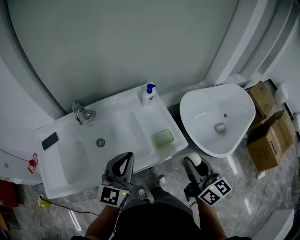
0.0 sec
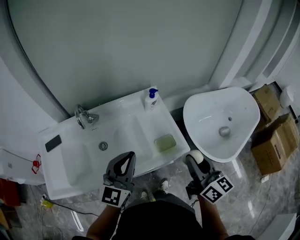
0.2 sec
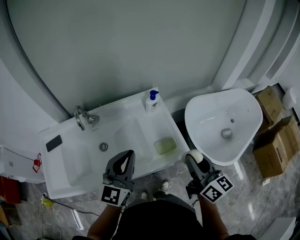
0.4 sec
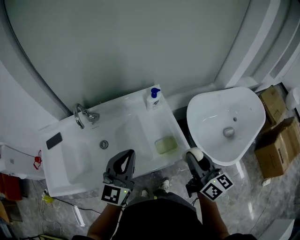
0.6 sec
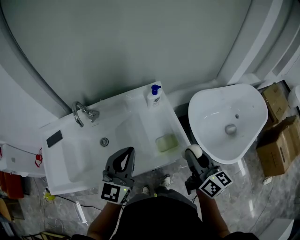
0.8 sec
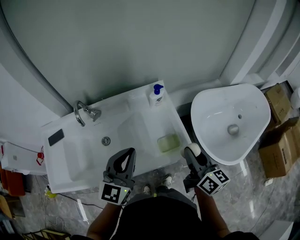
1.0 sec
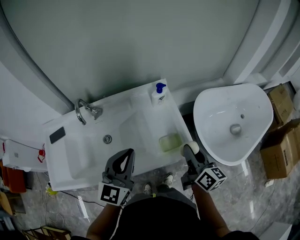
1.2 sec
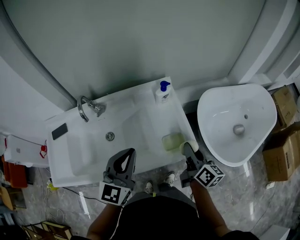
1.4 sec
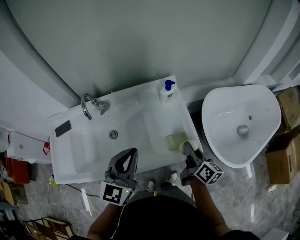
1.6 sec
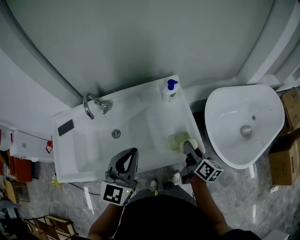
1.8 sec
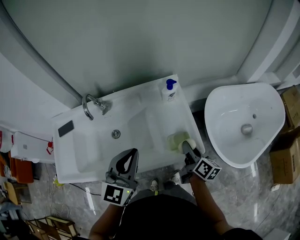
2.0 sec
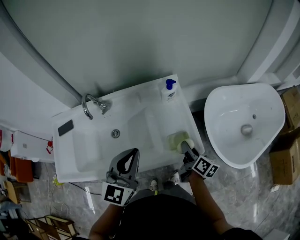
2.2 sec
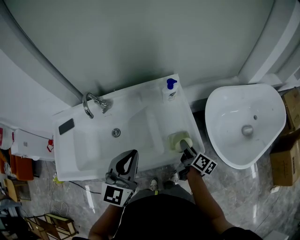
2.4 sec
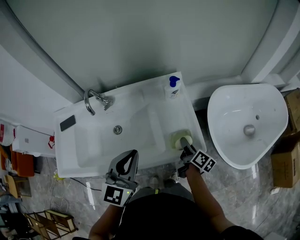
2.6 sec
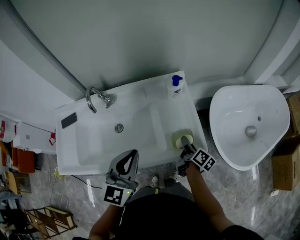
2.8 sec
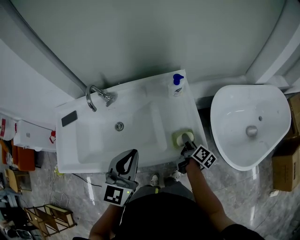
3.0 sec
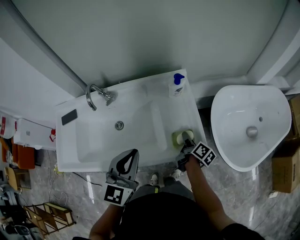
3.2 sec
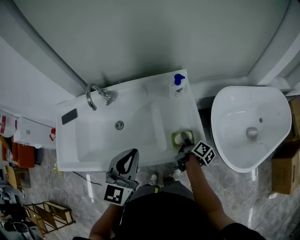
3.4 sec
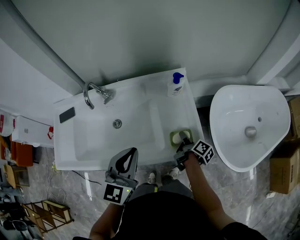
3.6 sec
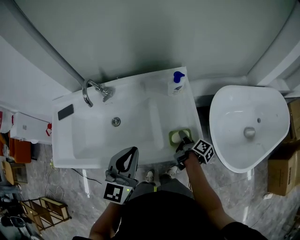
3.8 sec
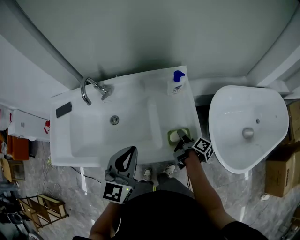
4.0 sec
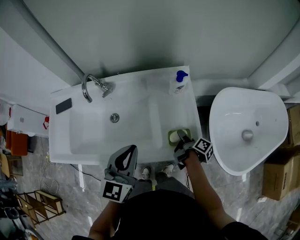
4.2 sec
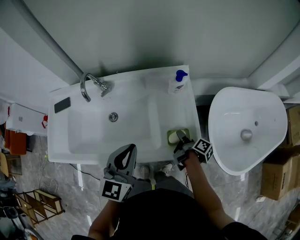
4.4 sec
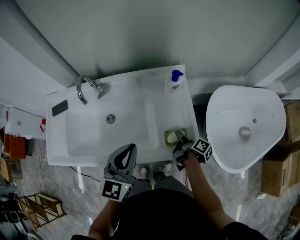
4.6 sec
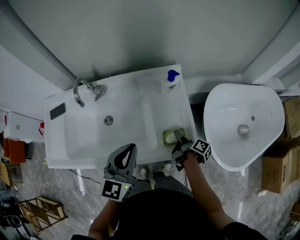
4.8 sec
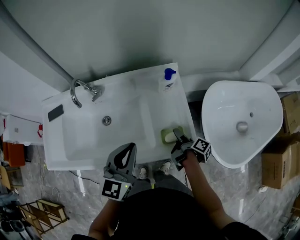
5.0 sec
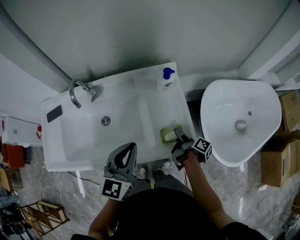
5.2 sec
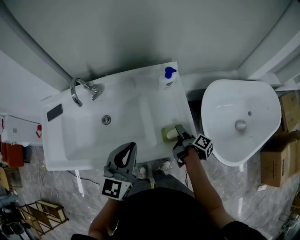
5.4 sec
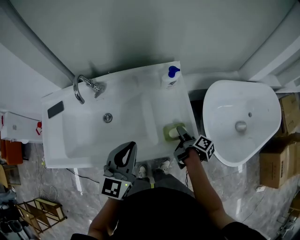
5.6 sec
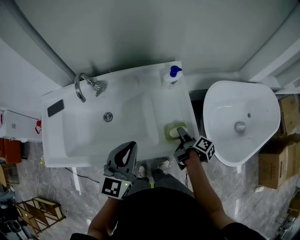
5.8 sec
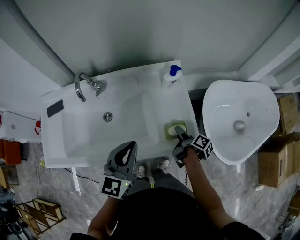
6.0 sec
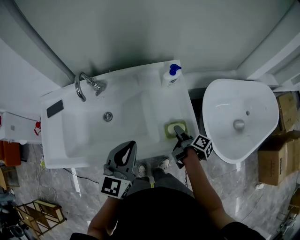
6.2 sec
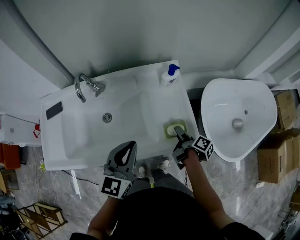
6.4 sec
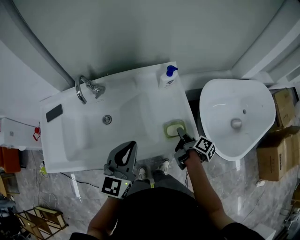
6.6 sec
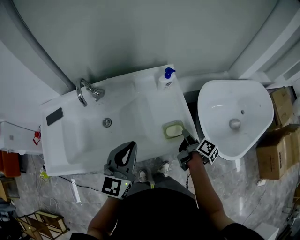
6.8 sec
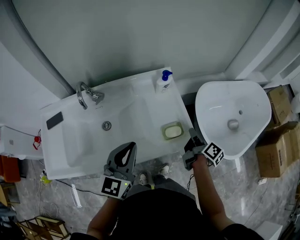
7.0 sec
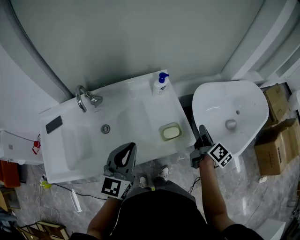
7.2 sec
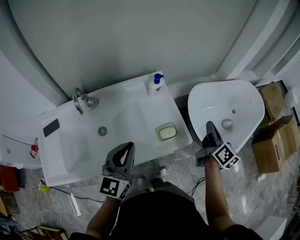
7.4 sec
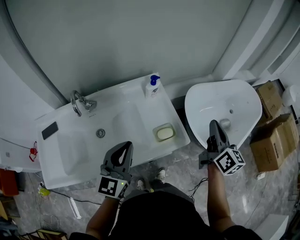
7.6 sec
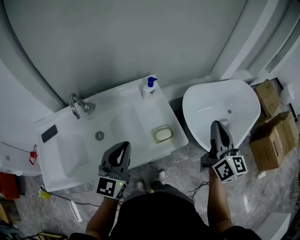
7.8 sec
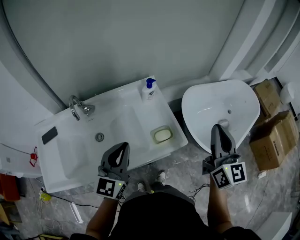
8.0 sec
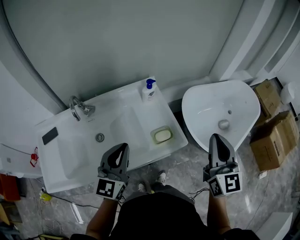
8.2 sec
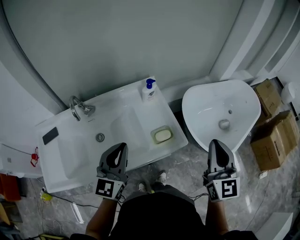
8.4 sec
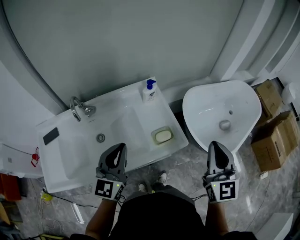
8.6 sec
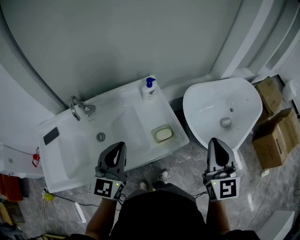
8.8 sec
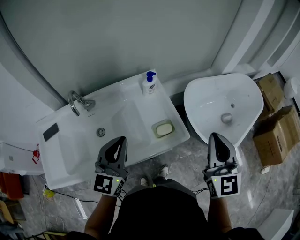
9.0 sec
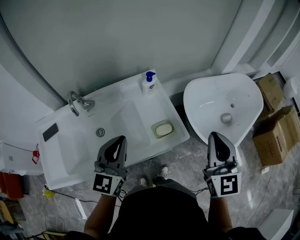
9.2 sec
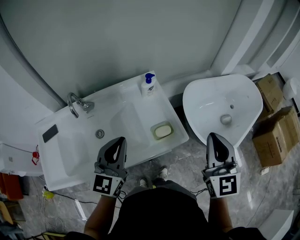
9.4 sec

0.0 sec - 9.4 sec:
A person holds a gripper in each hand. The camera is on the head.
0.0 sec - 1.6 sec: The right gripper moves downward and forward, roughly 20 cm, and swivels about 30 degrees, while the left gripper goes some 5 cm forward.
1.6 sec - 3.2 sec: The right gripper goes roughly 15 cm downward, and turns by about 30 degrees.
3.2 sec - 4.8 sec: The right gripper swivels about 20 degrees.
4.8 sec - 6.2 sec: There are only small adjustments of the grippers.
6.2 sec - 7.8 sec: The right gripper goes about 35 cm upward, rotates around the line of its fingers by some 70 degrees, counterclockwise from behind, and closes; the left gripper moves upward, approximately 5 cm.
7.8 sec - 9.4 sec: The right gripper heads backward, covering approximately 5 cm, and rotates approximately 30 degrees.

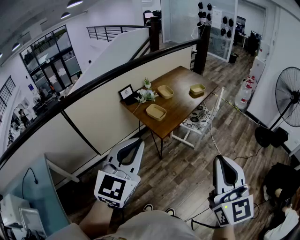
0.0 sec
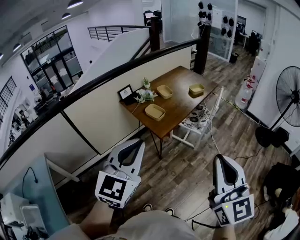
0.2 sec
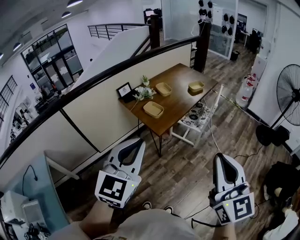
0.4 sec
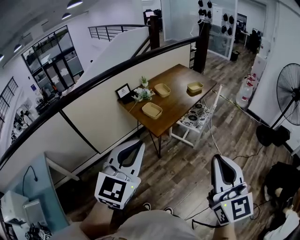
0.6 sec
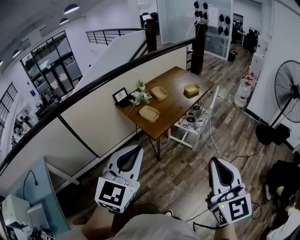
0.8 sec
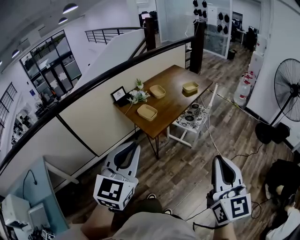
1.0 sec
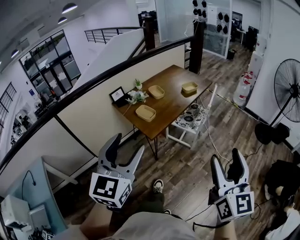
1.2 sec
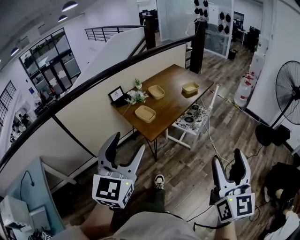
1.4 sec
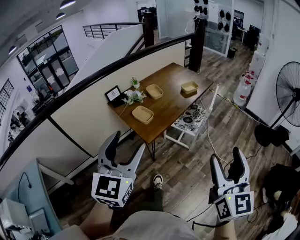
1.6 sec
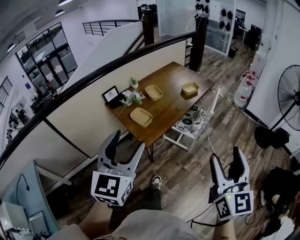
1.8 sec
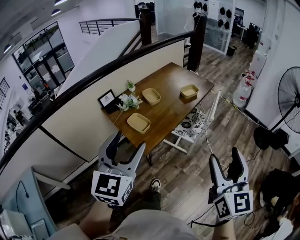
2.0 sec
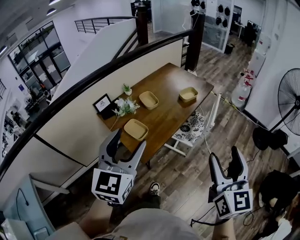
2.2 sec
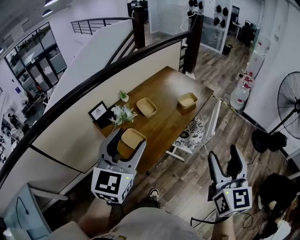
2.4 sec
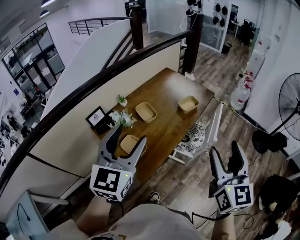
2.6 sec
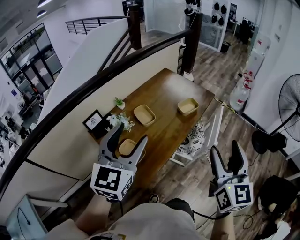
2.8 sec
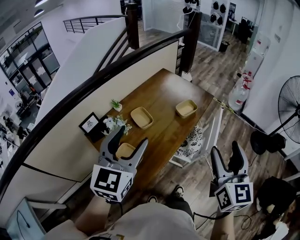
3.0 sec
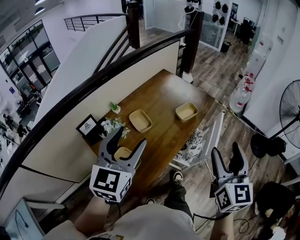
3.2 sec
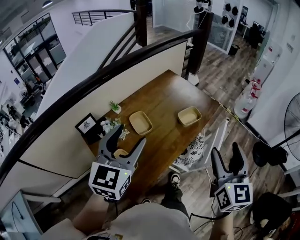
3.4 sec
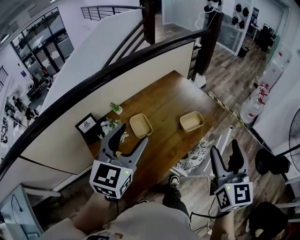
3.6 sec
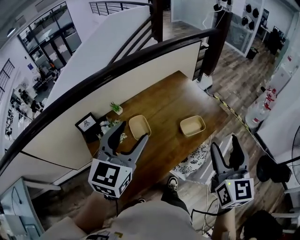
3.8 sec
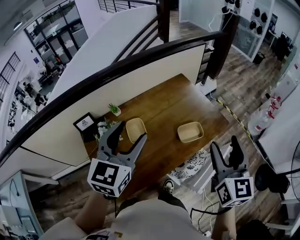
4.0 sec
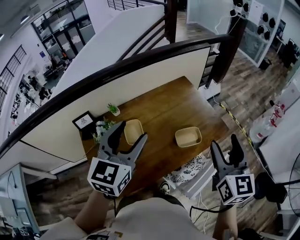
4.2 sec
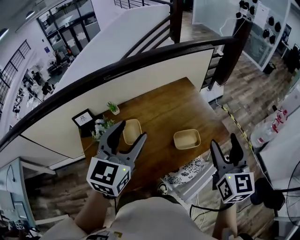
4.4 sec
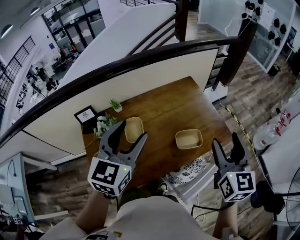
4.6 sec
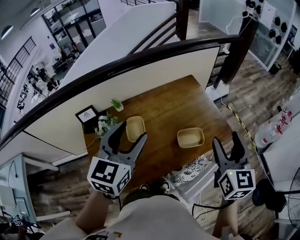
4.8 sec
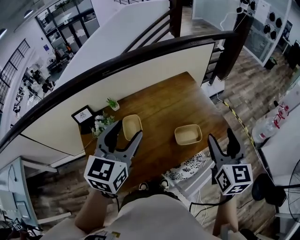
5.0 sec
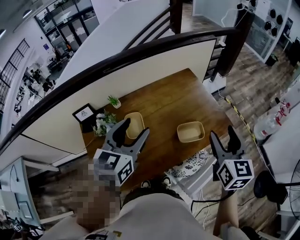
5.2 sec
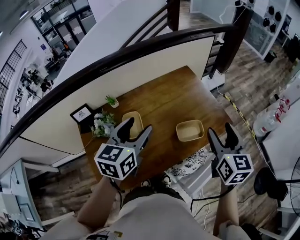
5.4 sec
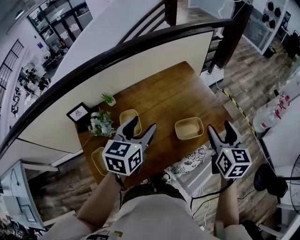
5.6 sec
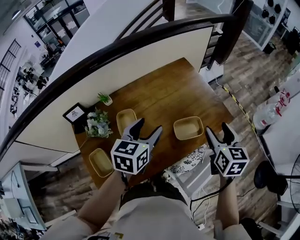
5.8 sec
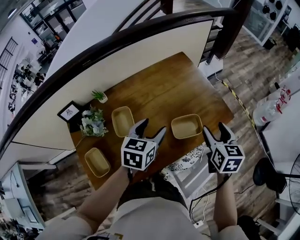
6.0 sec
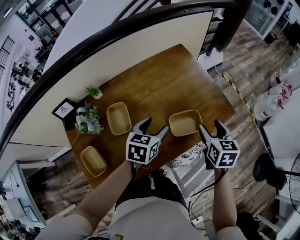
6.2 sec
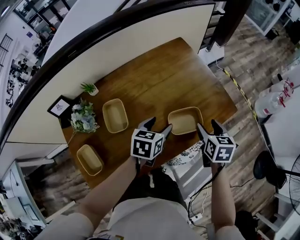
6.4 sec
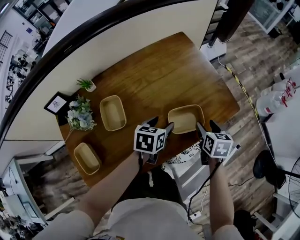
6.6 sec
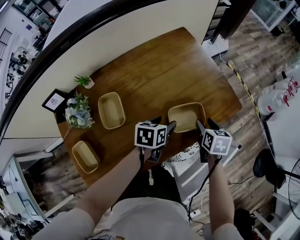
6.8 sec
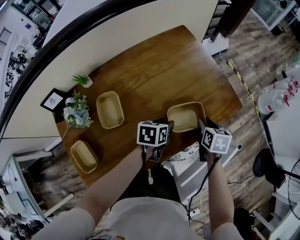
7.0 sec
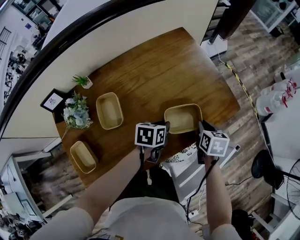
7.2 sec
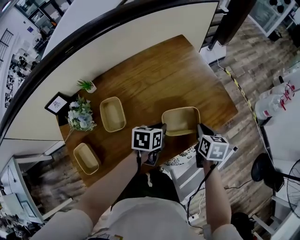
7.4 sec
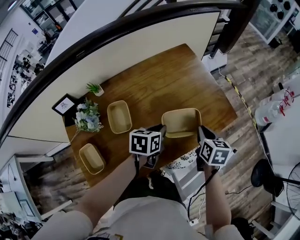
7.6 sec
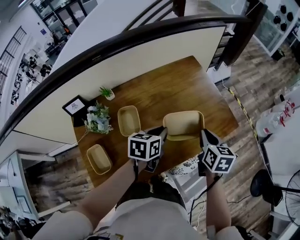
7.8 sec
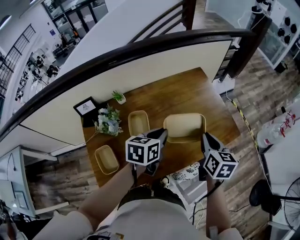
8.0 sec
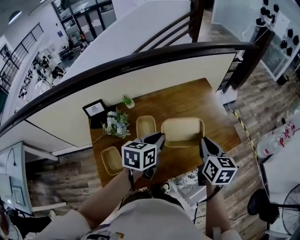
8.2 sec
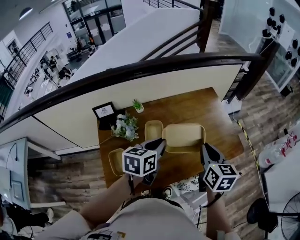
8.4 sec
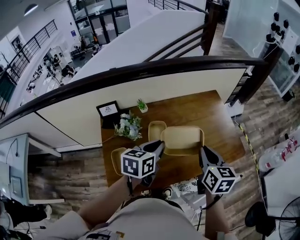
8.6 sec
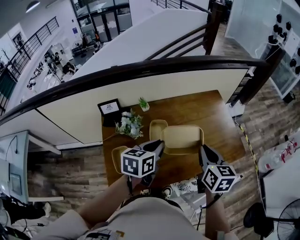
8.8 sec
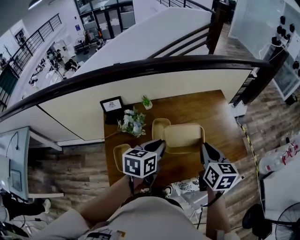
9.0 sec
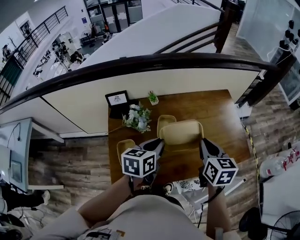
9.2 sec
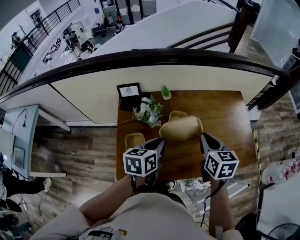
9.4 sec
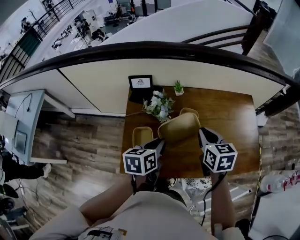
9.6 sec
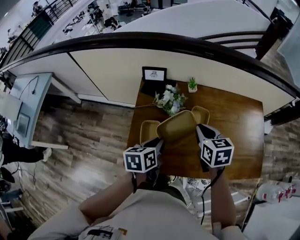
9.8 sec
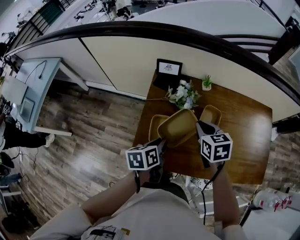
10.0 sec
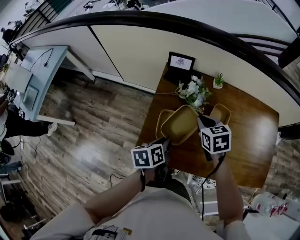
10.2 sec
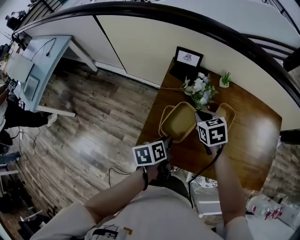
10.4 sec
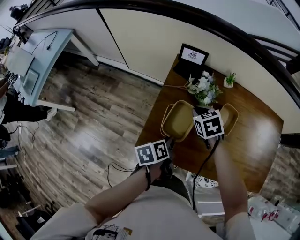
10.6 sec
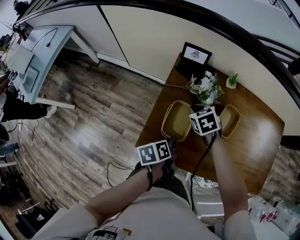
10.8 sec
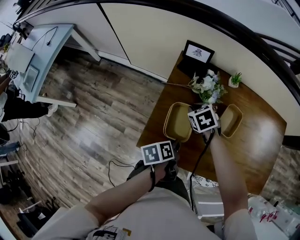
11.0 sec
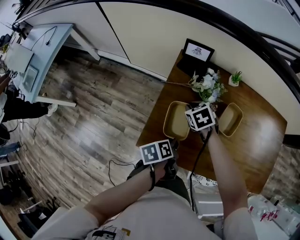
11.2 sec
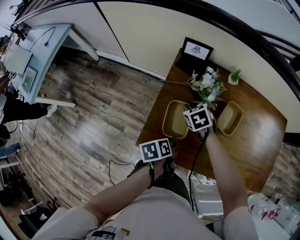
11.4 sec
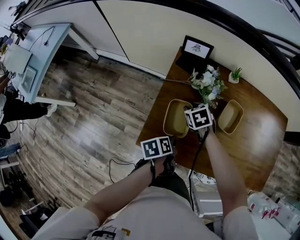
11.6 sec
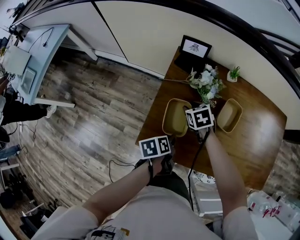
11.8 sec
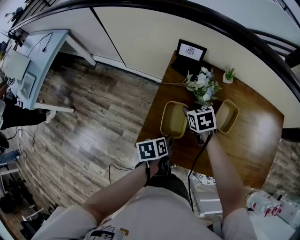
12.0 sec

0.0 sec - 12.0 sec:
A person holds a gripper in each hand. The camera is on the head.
0.0 sec - 1.6 sec: The left gripper shifts approximately 15 cm forward and to the right, and opens; the right gripper goes roughly 20 cm to the right and forward, and opens its fingers.
1.6 sec - 3.0 sec: The two grippers travel together, forward, roughly 40 cm.
3.0 sec - 4.4 sec: The left gripper shifts approximately 30 cm forward and to the right, and changes its angle by approximately 20 degrees. The right gripper shifts some 35 cm forward, and swivels approximately 30 degrees.
4.4 sec - 6.0 sec: Both grippers move downward and forward, some 25 cm. The left gripper turns by some 30 degrees. The right gripper turns by roughly 20 degrees.
6.0 sec - 7.6 sec: The two grippers go about 10 cm downward. The right gripper closes its fingers. The left gripper changes its angle by approximately 20 degrees, and closes its fingers.
7.6 sec - 9.0 sec: The left gripper heads to the left, upward and backward, covering some 30 cm, and changes its angle by approximately 20 degrees. The right gripper is displaced upward and to the left by roughly 30 cm, and swivels about 20 degrees.
9.0 sec - 10.4 sec: The right gripper changes place by about 40 cm, and swivels approximately 60 degrees. The left gripper changes place by roughly 30 cm, and rotates around the line of its fingers by roughly 50 degrees, counterclockwise from behind.
10.4 sec - 12.0 sec: The two grippers go about 5 cm downward. The right gripper opens up. The left gripper opens.

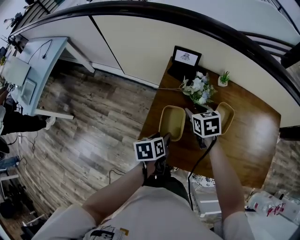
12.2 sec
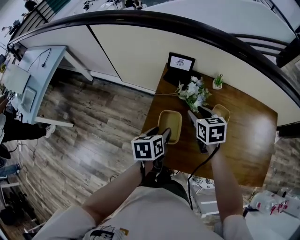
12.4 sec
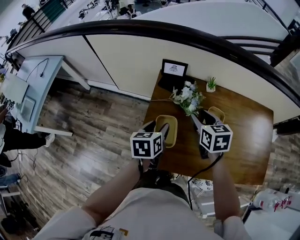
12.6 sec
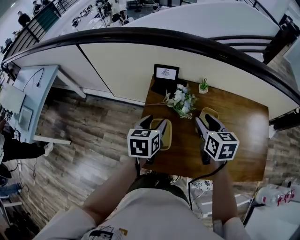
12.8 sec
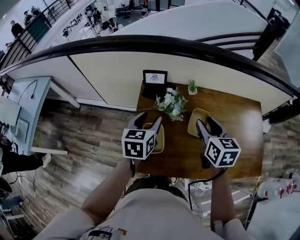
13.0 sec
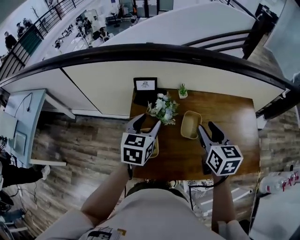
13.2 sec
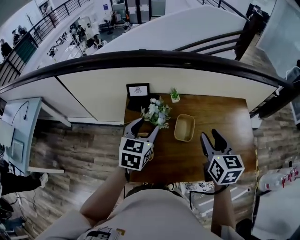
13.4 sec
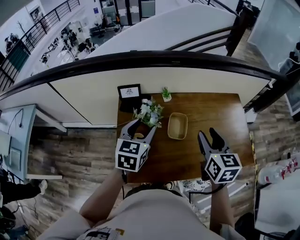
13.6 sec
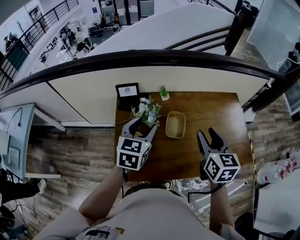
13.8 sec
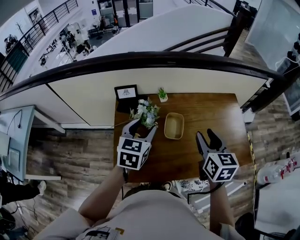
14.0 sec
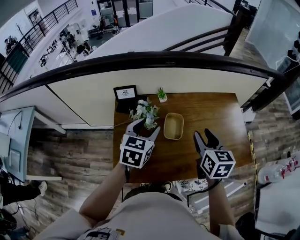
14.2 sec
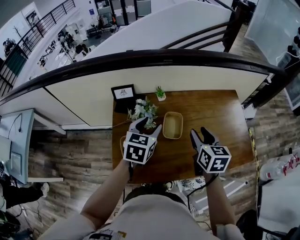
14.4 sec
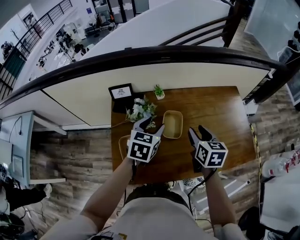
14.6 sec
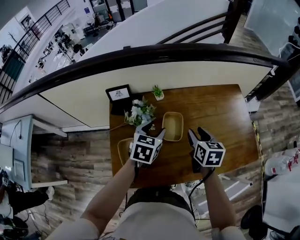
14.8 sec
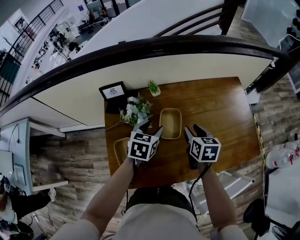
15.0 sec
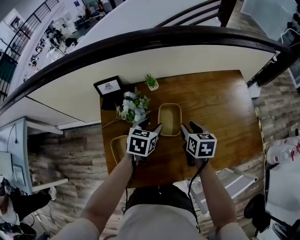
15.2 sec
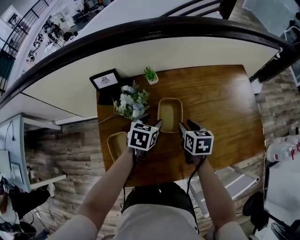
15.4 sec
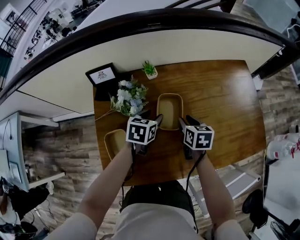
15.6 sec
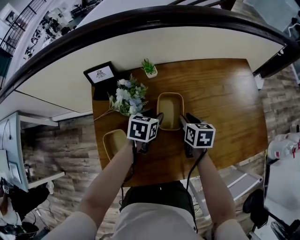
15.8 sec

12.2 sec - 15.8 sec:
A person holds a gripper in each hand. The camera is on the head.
12.2 sec - 14.0 sec: The left gripper is displaced upward, to the right and forward by about 30 cm, and rolls clockwise, seen from behind, by approximately 60 degrees; the right gripper travels to the right and upward by roughly 35 cm, and swivels approximately 40 degrees.
14.0 sec - 15.8 sec: The grippers both shift downward by roughly 30 cm. The right gripper turns by about 30 degrees, while the left gripper changes its angle by about 30 degrees.
